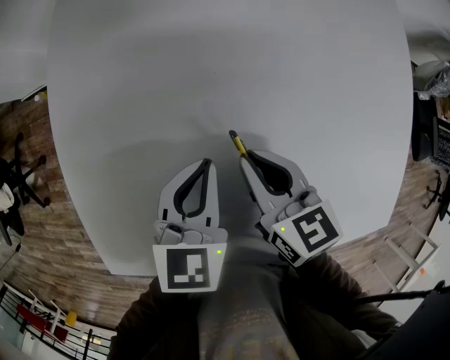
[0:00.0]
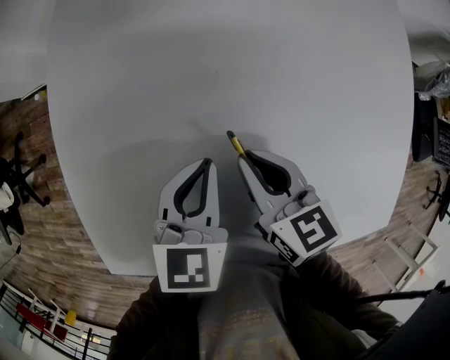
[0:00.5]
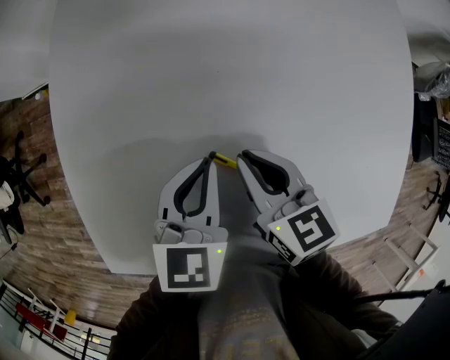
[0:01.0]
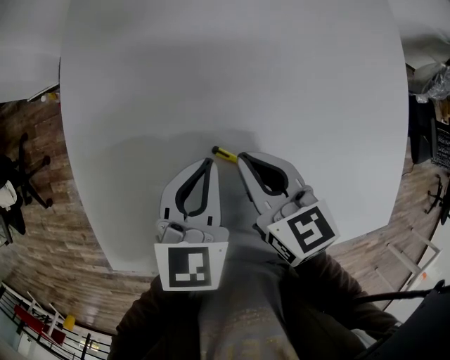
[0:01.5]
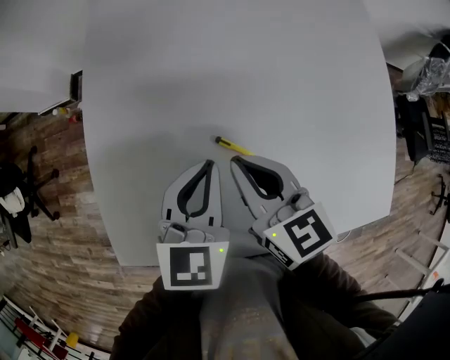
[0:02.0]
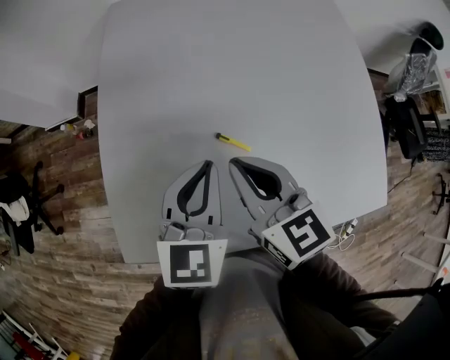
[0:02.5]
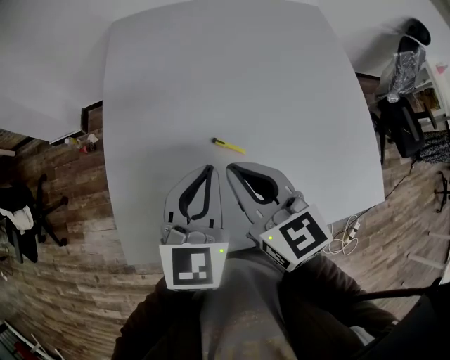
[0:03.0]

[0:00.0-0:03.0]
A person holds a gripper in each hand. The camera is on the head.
0:00.0 to 0:01.5: The grippers move only a little.
0:01.5 to 0:03.0: The two grippers go approximately 15 cm upward and backward.

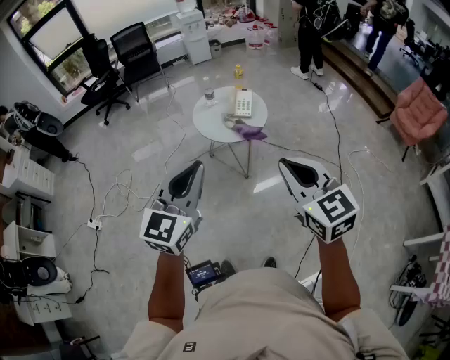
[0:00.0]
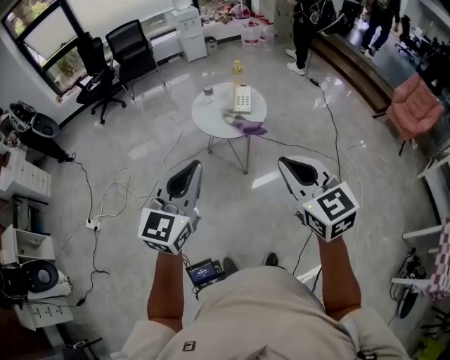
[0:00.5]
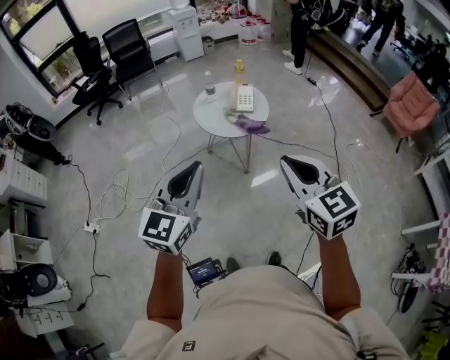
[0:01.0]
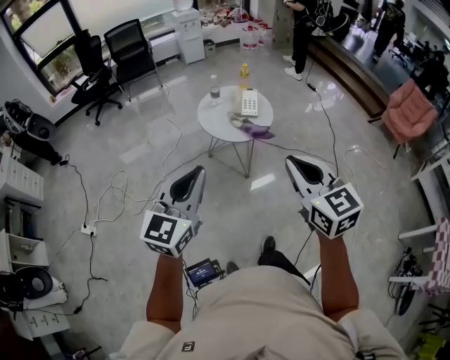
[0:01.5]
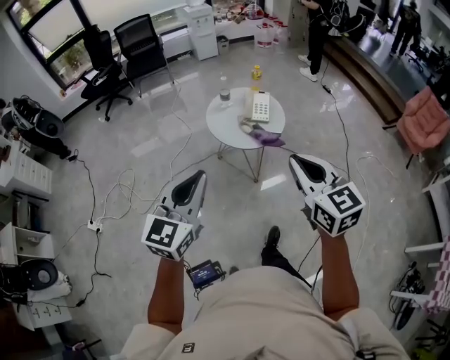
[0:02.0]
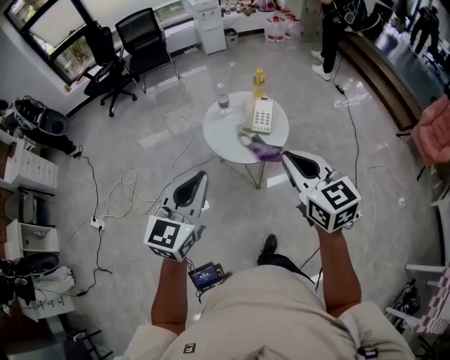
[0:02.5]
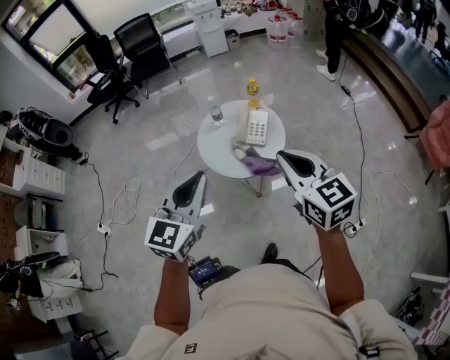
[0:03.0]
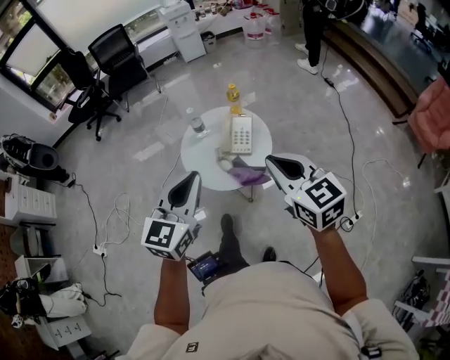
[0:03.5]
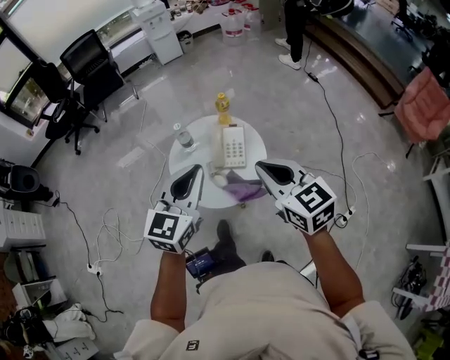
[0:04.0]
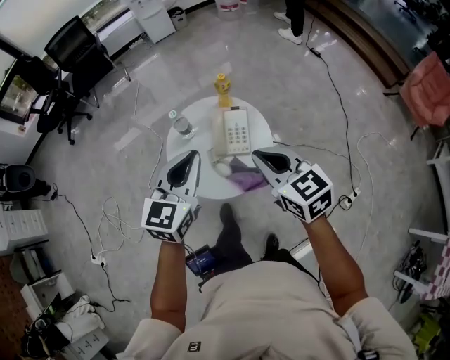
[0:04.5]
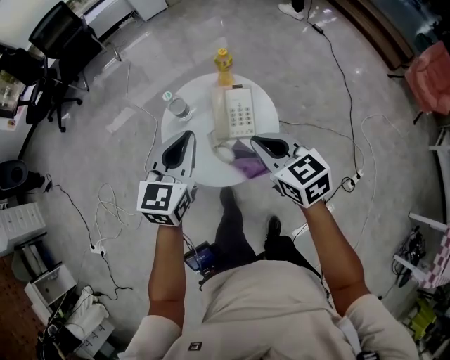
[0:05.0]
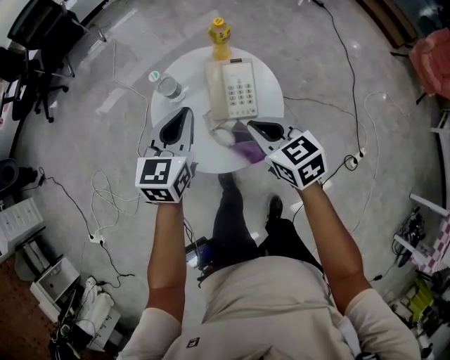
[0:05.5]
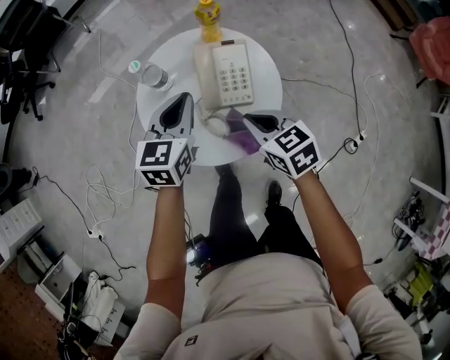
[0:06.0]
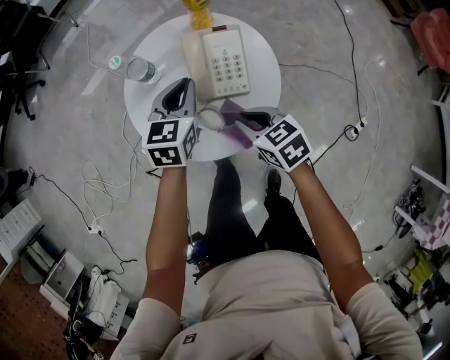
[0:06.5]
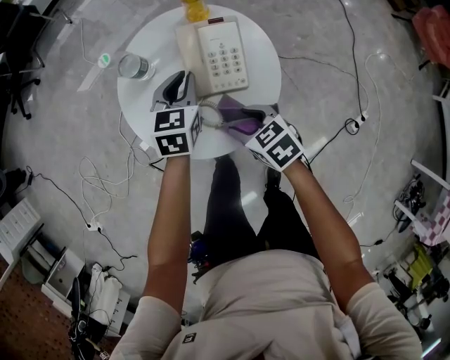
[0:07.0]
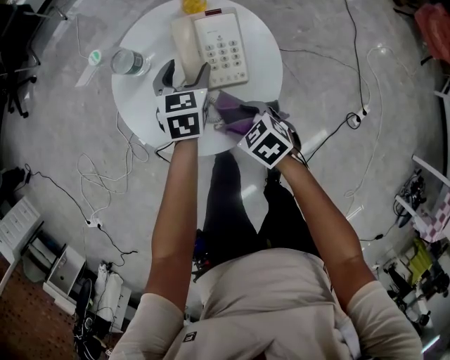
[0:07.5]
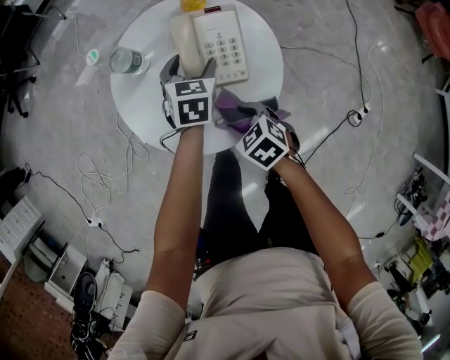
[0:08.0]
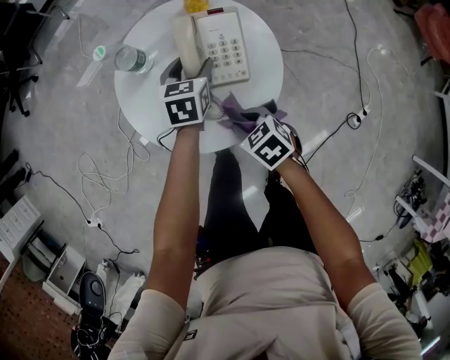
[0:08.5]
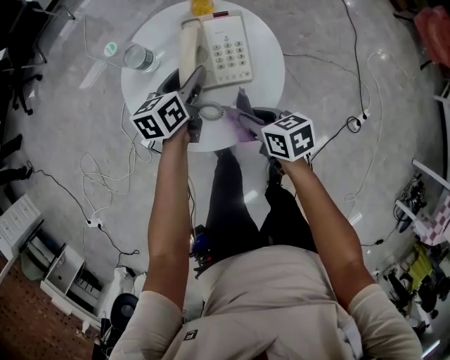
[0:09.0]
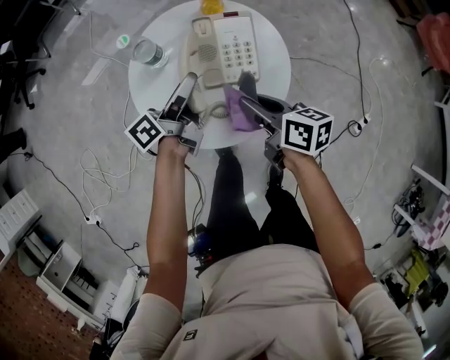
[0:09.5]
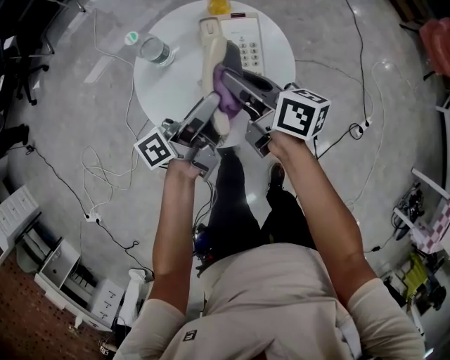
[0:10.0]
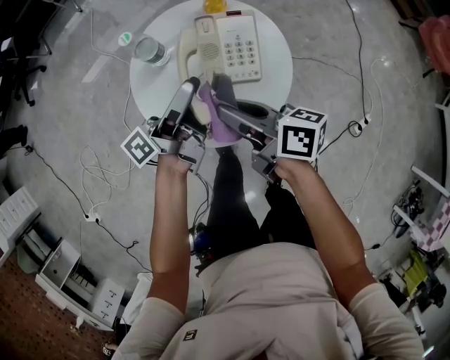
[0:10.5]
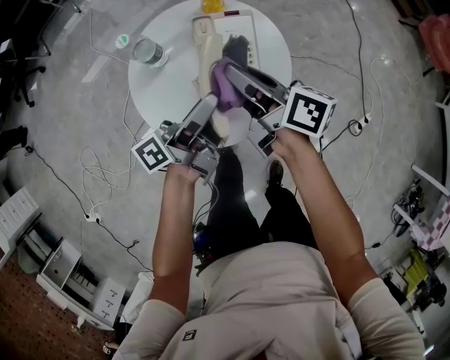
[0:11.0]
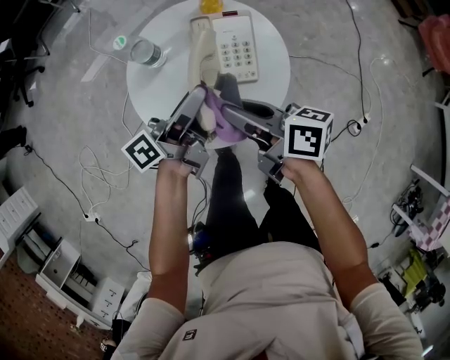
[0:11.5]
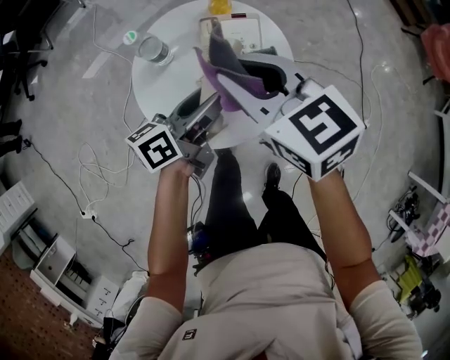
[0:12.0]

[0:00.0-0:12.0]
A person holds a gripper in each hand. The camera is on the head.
0:00.0 to 0:02.0: The right gripper is displaced forward and to the left by about 15 cm; the left gripper heads to the left and forward, covering some 15 cm.
0:02.0 to 0:04.0: The right gripper travels forward by roughly 35 cm. Meanwhile the left gripper travels forward and to the right by roughly 40 cm.
0:04.0 to 0:06.0: The left gripper shifts approximately 30 cm downward and forward. Meanwhile the right gripper goes about 30 cm downward, and rotates about 30 degrees.
0:06.0 to 0:08.0: The two grippers go roughly 15 cm downward. The right gripper swivels some 20 degrees, and opens its fingers; the left gripper rotates approximately 20 degrees, and opens its fingers.
0:08.0 to 0:10.0: The right gripper heads upward and forward, covering roughly 20 cm, angles its fingers upward, by some 50 degrees, and closes up. The left gripper heads upward and backward, covering about 20 cm, and tilts its fingers roughly 50 degrees upward.
0:10.0 to 0:12.0: The left gripper rotates about 30 degrees. The right gripper goes about 10 cm upward, and rotates around the line of its fingers by roughly 50 degrees, counterclockwise from behind.

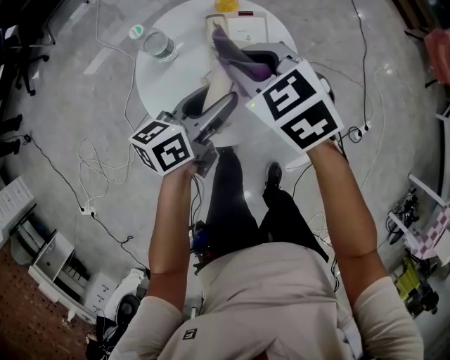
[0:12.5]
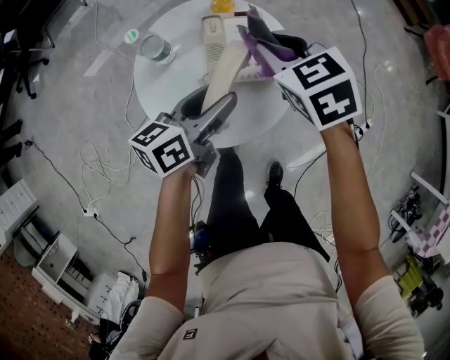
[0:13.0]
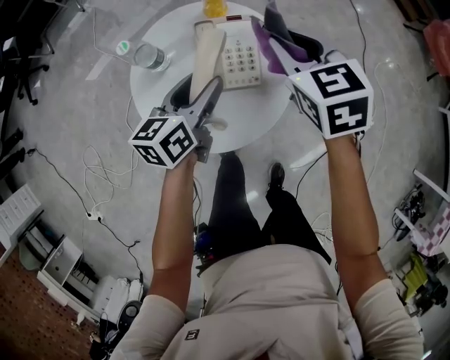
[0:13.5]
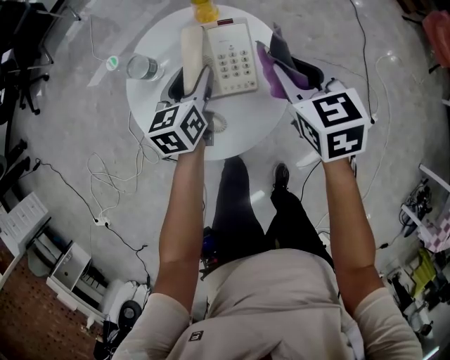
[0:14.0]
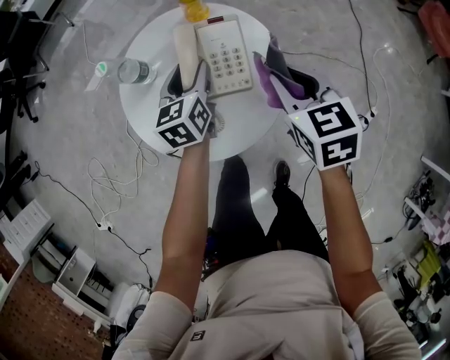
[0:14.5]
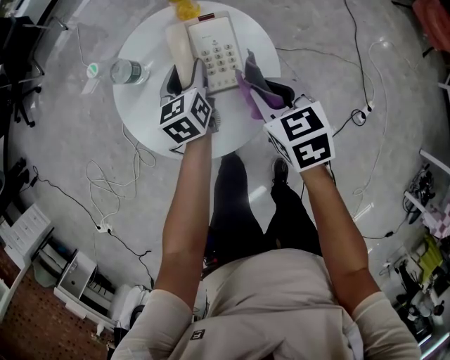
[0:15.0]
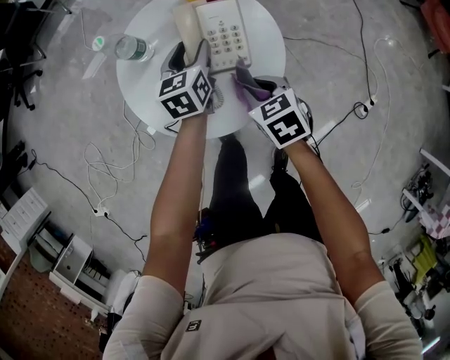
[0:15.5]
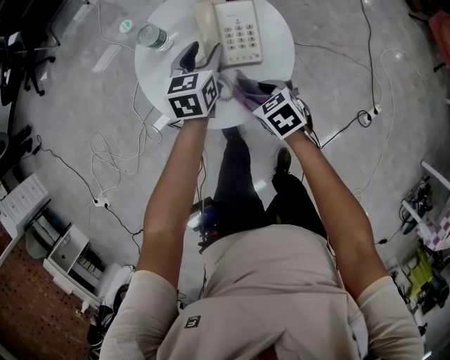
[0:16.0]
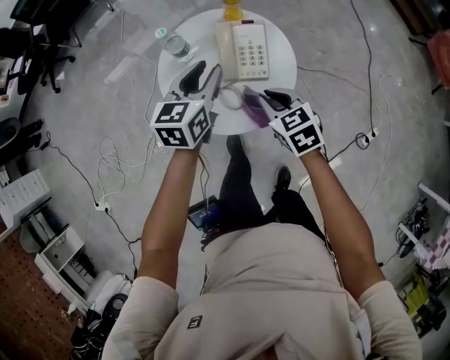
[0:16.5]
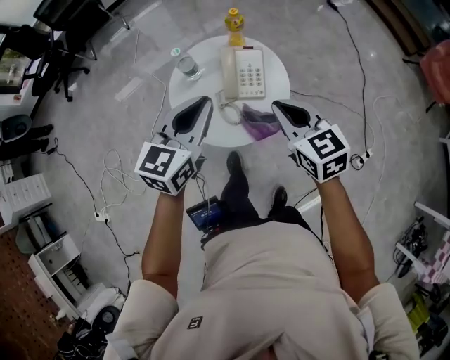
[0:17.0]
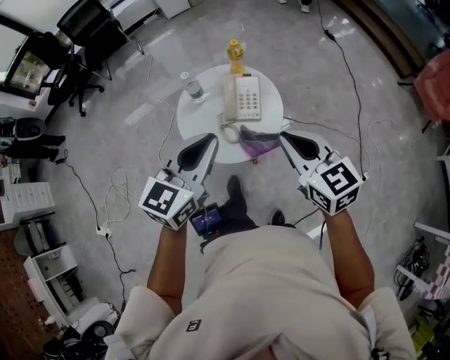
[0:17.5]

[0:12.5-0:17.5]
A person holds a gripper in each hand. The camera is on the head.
0:12.5 to 0:15.0: The right gripper heads to the right and downward, covering about 15 cm, and changes its angle by approximately 20 degrees. Meanwhile the left gripper travels downward and forward by about 15 cm, and swivels roughly 40 degrees.
0:15.0 to 0:17.5: Both grippers move upward and backward, approximately 40 cm. The right gripper rotates approximately 30 degrees, and opens, then closes again. Meanwhile the left gripper changes its angle by some 30 degrees, and closes its fingers.

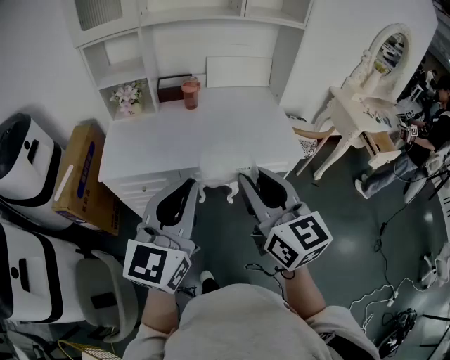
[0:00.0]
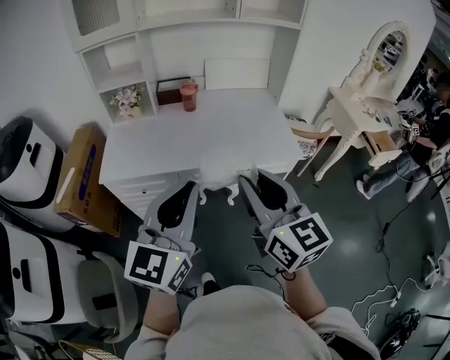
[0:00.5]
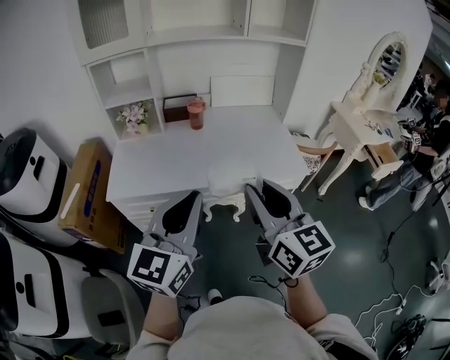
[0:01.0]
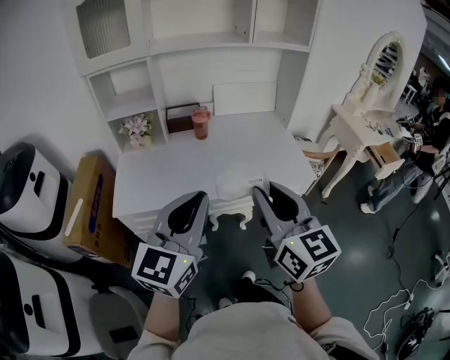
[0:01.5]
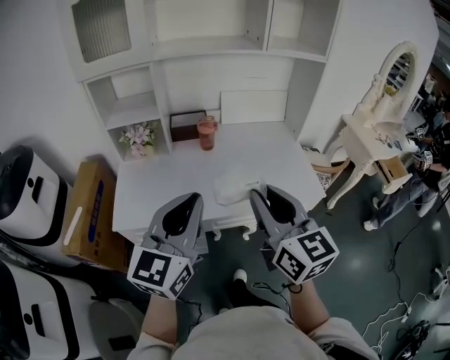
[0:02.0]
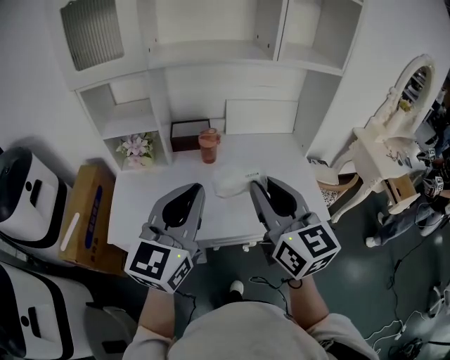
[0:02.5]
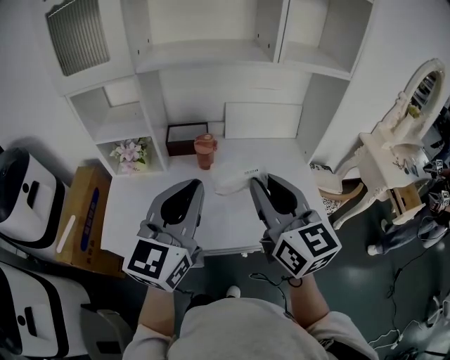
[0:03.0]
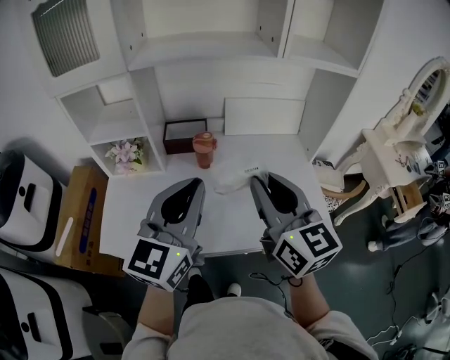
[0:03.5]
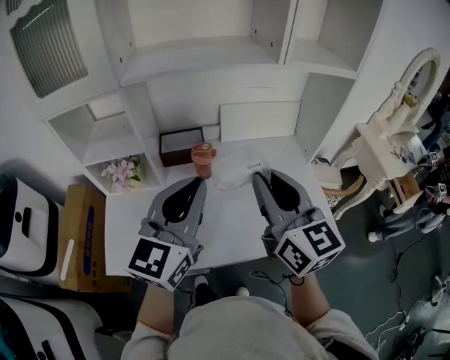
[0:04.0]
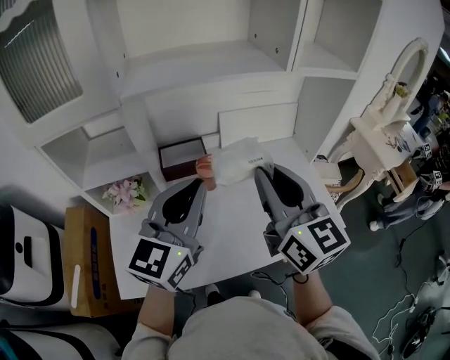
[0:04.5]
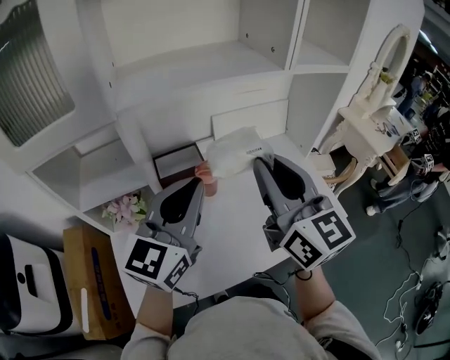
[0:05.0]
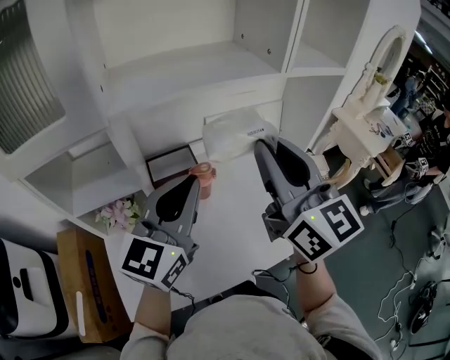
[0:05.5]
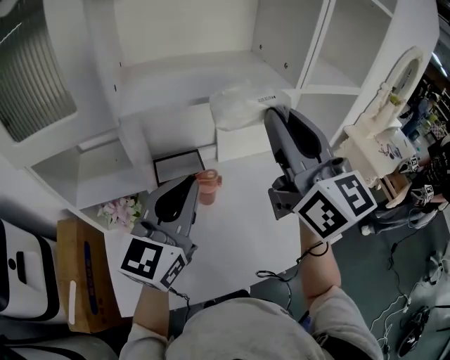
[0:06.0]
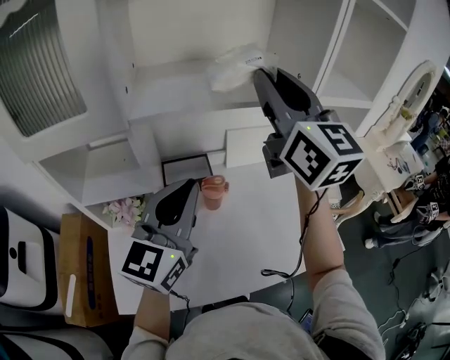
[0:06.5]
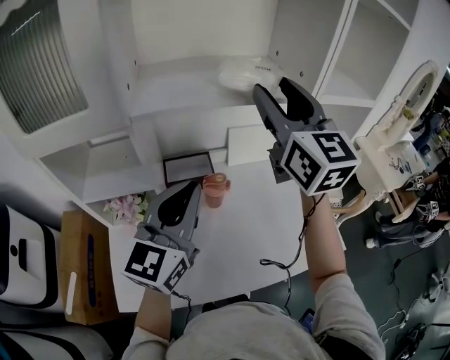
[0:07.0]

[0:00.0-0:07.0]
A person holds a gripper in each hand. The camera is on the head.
0:00.0 to 0:02.0: The grippers both shift forward and to the left by approximately 15 cm.
0:02.0 to 0:03.5: Both grippers travel together forward, approximately 20 cm.
0:03.5 to 0:05.0: The left gripper is displaced forward and to the left by approximately 15 cm. The right gripper goes roughly 15 cm to the left, forward and upward.
0:05.0 to 0:07.0: The right gripper is displaced forward and upward by some 20 cm, and opens its fingers.
